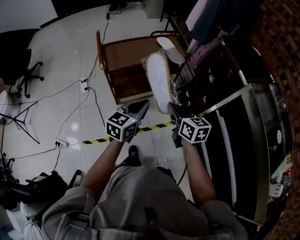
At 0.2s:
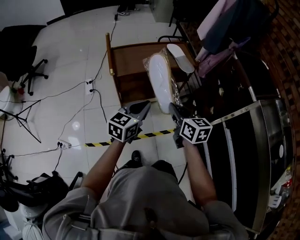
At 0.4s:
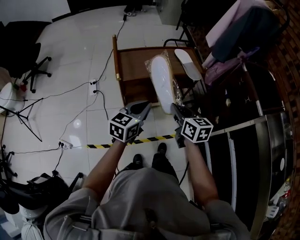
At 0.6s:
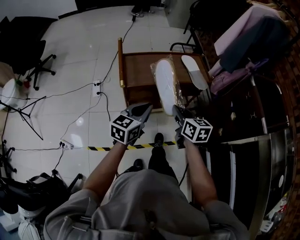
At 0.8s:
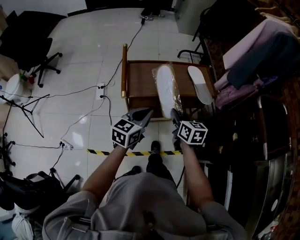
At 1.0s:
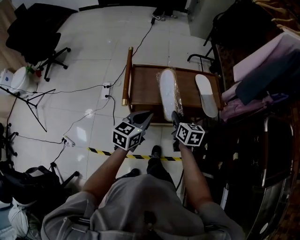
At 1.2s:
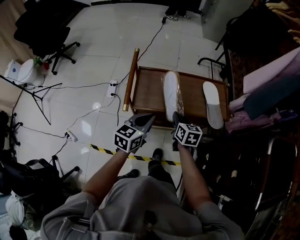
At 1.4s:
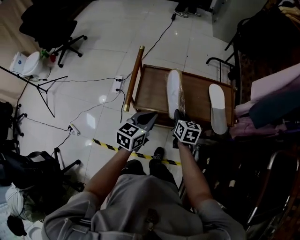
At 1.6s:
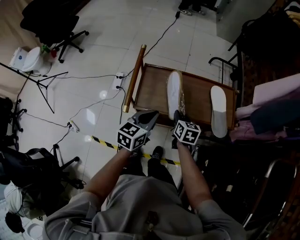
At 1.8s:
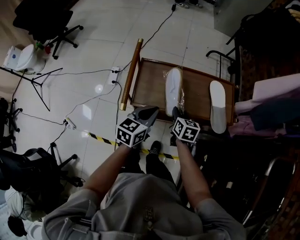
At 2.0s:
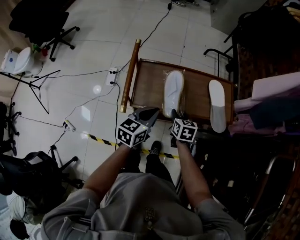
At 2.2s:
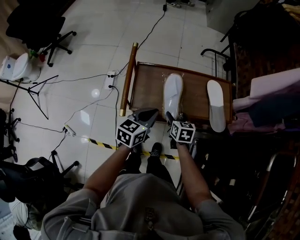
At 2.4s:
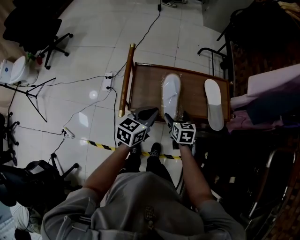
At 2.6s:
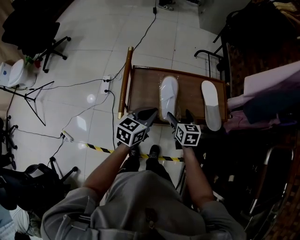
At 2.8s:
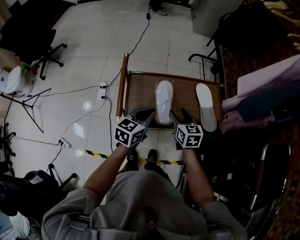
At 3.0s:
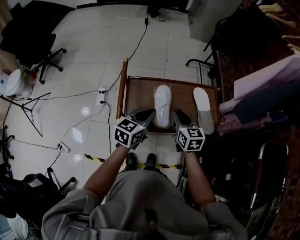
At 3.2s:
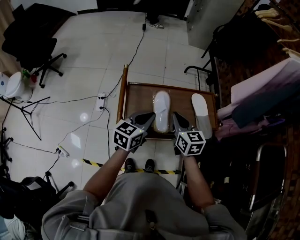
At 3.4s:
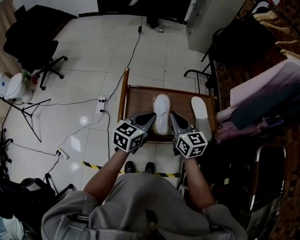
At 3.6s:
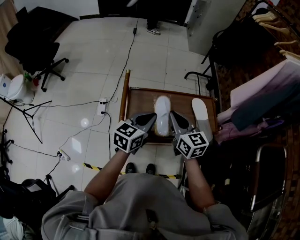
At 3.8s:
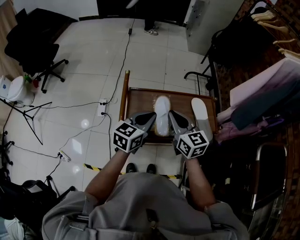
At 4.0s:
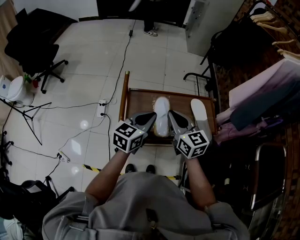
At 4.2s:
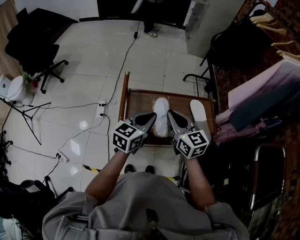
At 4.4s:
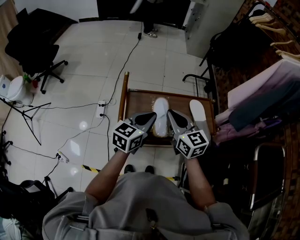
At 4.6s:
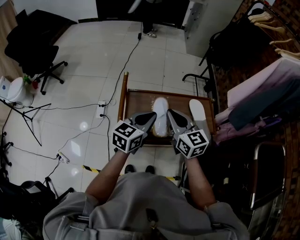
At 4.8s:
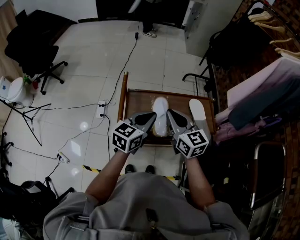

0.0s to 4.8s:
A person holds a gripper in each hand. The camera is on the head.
0.0s to 1.6s: The left gripper is displaced forward by roughly 30 cm, and changes its angle by some 30 degrees. Meanwhile the right gripper is displaced forward and downward by some 40 cm.
1.6s to 3.2s: The left gripper is displaced upward by some 5 cm, while the right gripper heads upward, covering about 15 cm, turns by some 20 degrees, and opens, then closes again.
3.2s to 4.8s: The left gripper is displaced upward by roughly 5 cm. The right gripper moves upward, about 10 cm.

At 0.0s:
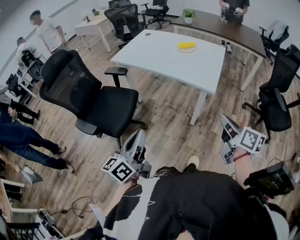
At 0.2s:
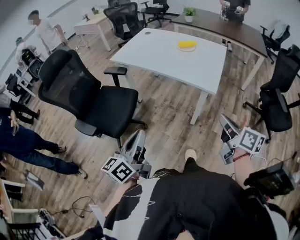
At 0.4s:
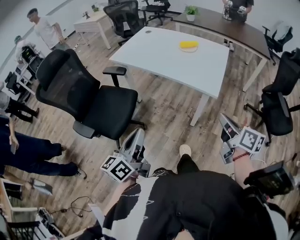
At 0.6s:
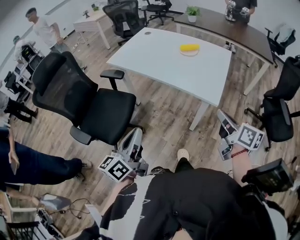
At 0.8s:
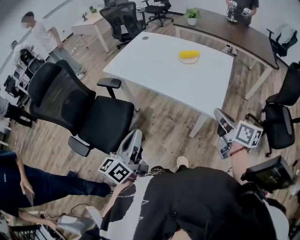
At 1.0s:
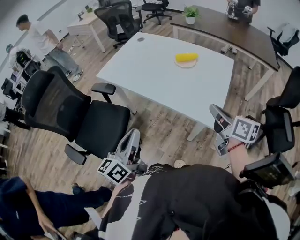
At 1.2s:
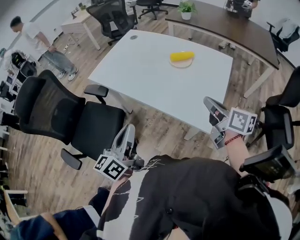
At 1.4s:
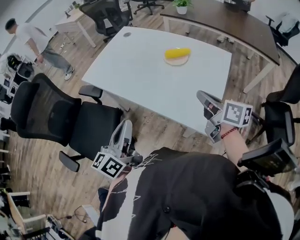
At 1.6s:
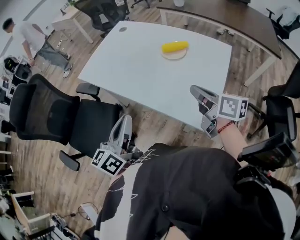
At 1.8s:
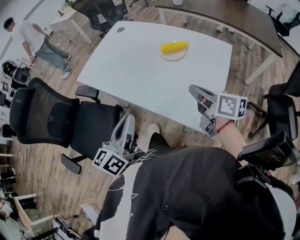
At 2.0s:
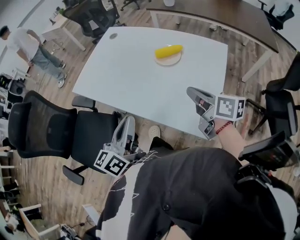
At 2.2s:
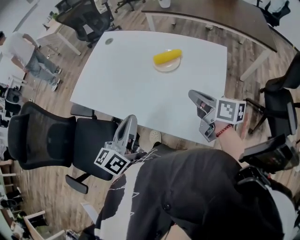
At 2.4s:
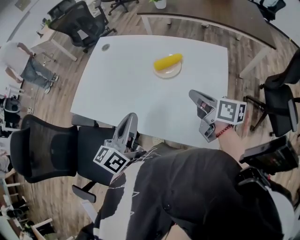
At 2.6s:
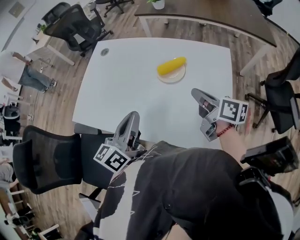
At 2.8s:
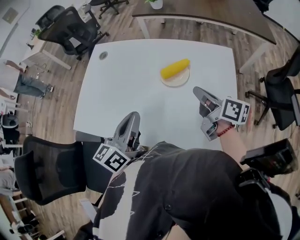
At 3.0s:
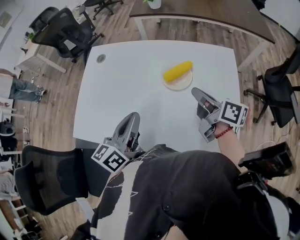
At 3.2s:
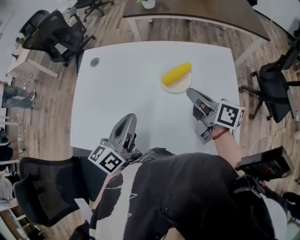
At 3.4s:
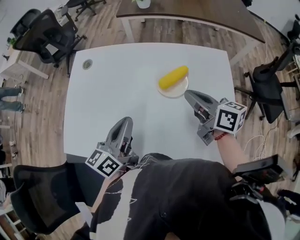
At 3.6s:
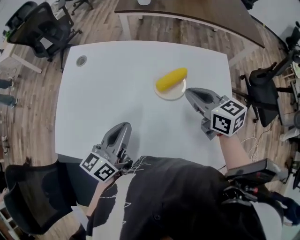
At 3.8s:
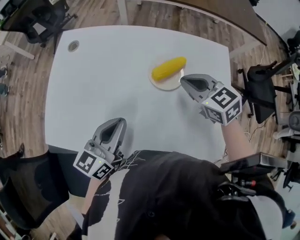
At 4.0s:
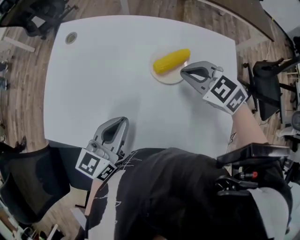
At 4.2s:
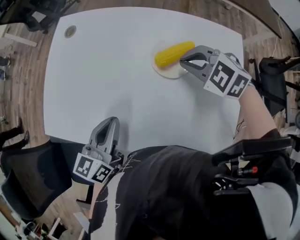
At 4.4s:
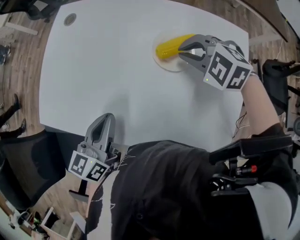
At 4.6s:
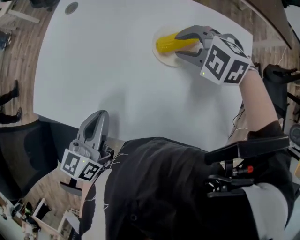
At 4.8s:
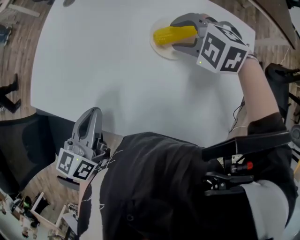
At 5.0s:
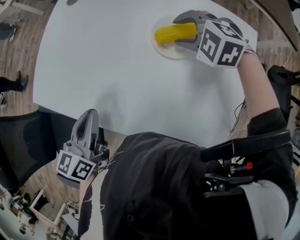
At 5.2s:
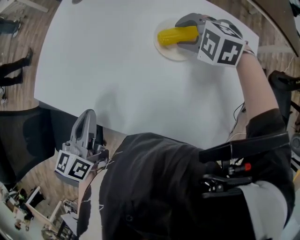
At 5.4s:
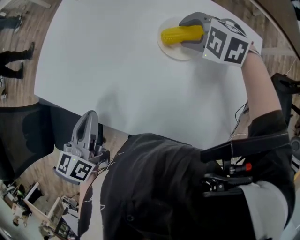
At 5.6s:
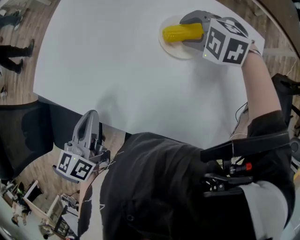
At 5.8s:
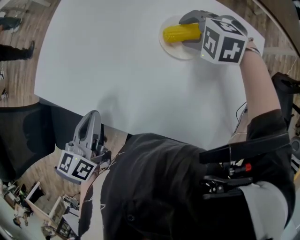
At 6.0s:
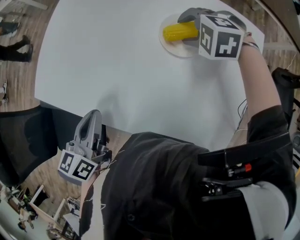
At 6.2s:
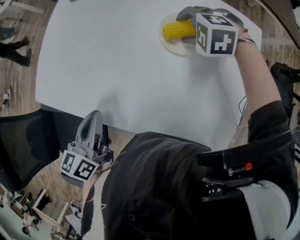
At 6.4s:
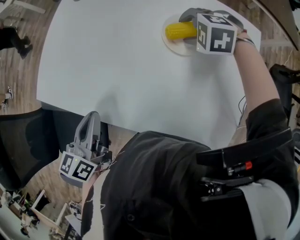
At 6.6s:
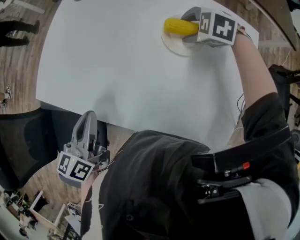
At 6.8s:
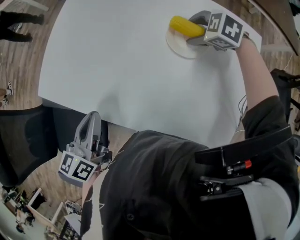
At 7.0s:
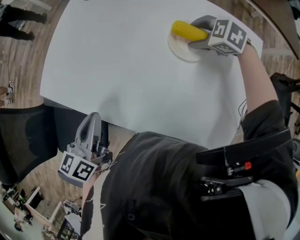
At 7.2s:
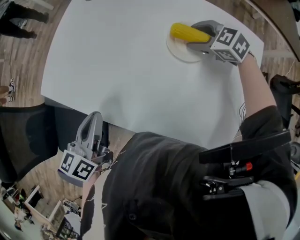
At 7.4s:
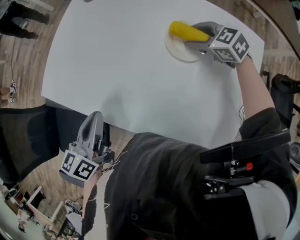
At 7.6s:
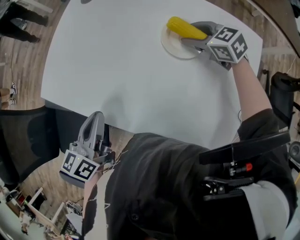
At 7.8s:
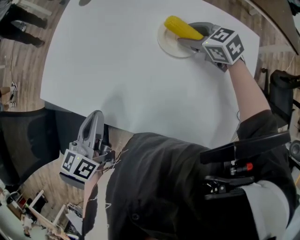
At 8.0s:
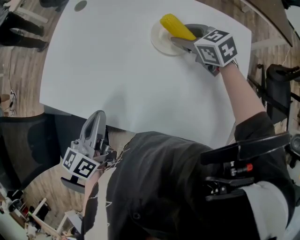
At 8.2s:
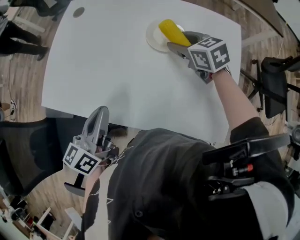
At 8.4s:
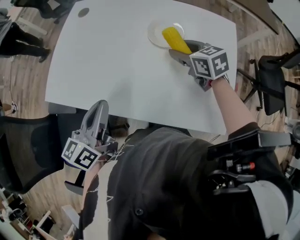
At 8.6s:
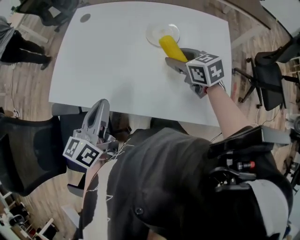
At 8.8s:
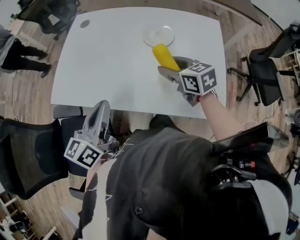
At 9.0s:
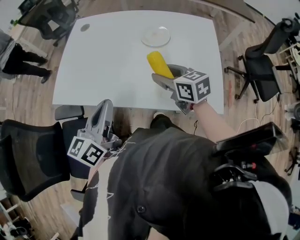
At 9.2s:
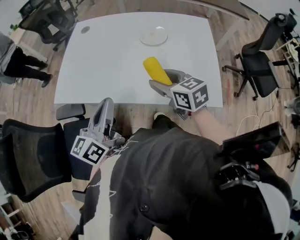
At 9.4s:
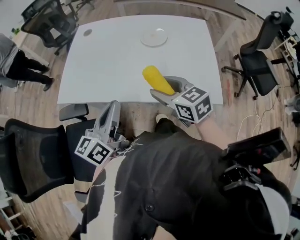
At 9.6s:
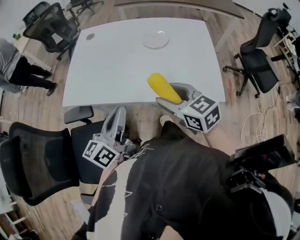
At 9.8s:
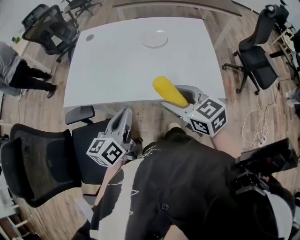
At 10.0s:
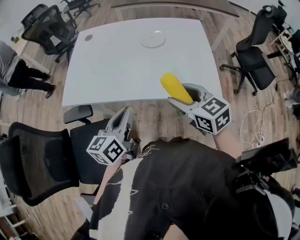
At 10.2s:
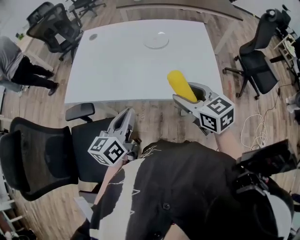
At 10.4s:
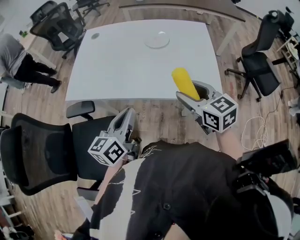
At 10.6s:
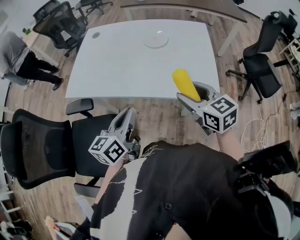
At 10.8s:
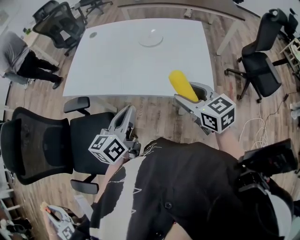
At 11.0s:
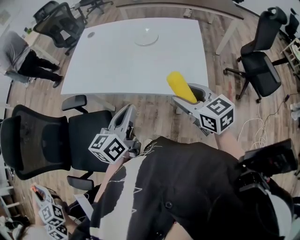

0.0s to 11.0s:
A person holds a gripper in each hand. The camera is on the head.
0.0s to 1.6s: Both grippers move forward, approximately 40 cm.
1.6s to 3.2s: The left gripper changes place by approximately 35 cm, and turns by some 30 degrees, while the right gripper shifts by about 25 cm, and rotates roughly 30 degrees.
3.2s to 4.8s: The left gripper goes roughly 5 cm downward, and turns by about 20 degrees; the right gripper heads downward and forward, covering some 15 cm, twists about 100 degrees counterclockwise, seen from behind, and opens its fingers.
4.8s to 6.2s: The left gripper moves about 5 cm.
6.2s to 7.8s: The right gripper rotates around the line of its fingers by about 50 degrees, clockwise from behind.
7.8s to 9.4s: The left gripper shifts approximately 15 cm backward and upward, and changes its angle by approximately 30 degrees, while the right gripper travels backward by approximately 35 cm, and swivels roughly 30 degrees.
9.4s to 11.0s: The two grippers go about 15 cm to the right and backward.

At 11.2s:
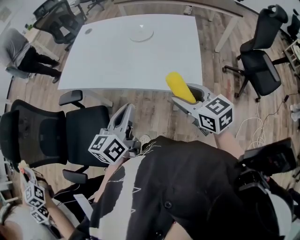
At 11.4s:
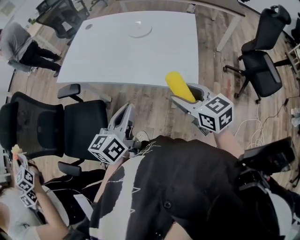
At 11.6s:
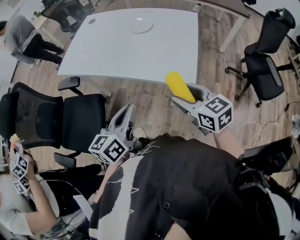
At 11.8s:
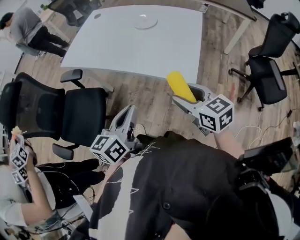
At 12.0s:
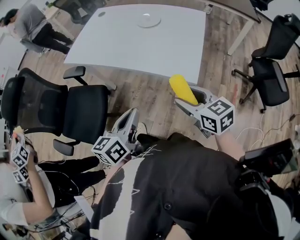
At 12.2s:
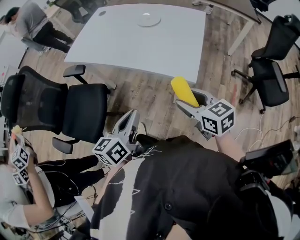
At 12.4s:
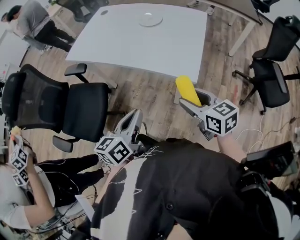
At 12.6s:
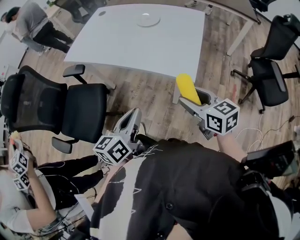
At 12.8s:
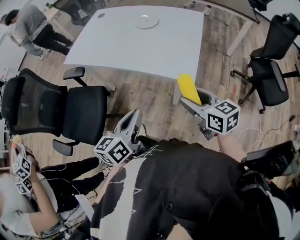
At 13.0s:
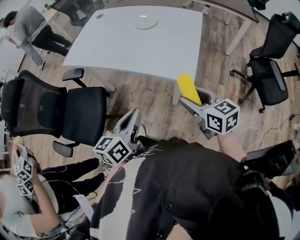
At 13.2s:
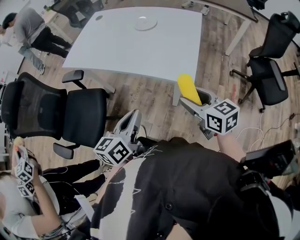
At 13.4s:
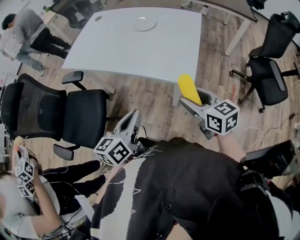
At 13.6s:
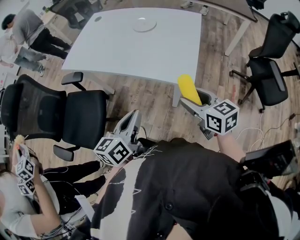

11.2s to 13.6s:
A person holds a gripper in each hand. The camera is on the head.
11.2s to 12.4s: Both grippers travel together backward and to the right, about 15 cm.
12.4s to 13.6s: The grippers make only small movements.

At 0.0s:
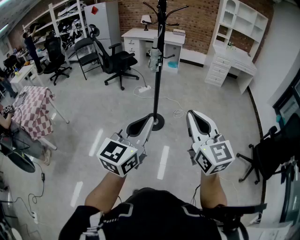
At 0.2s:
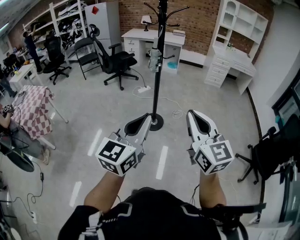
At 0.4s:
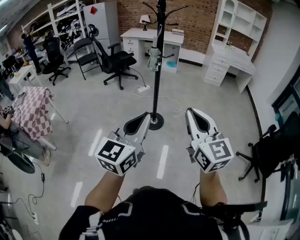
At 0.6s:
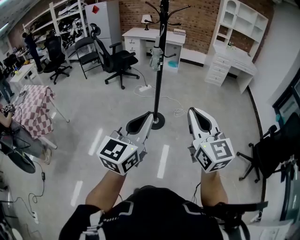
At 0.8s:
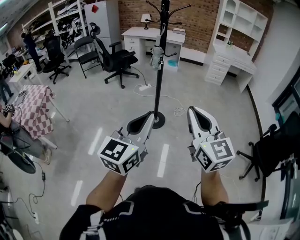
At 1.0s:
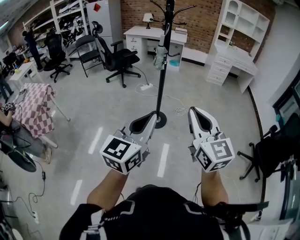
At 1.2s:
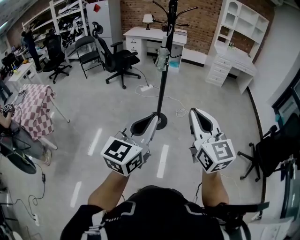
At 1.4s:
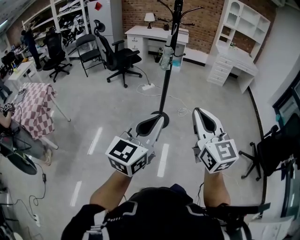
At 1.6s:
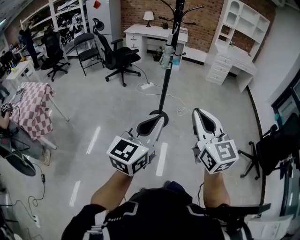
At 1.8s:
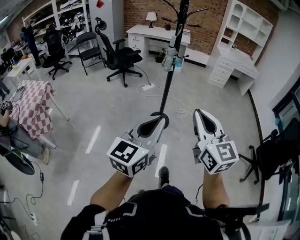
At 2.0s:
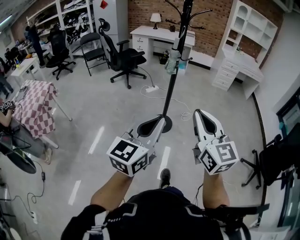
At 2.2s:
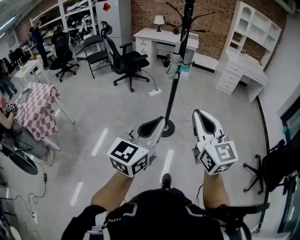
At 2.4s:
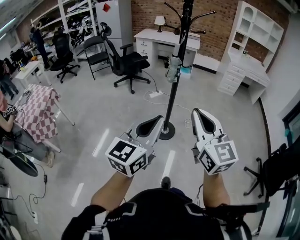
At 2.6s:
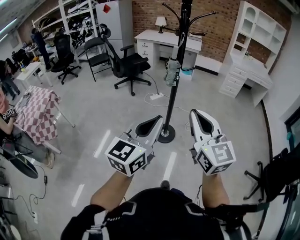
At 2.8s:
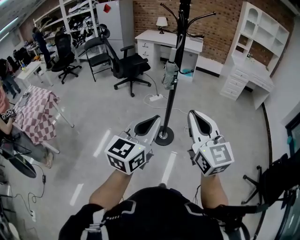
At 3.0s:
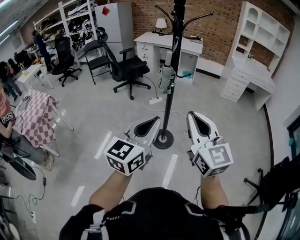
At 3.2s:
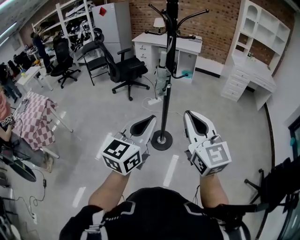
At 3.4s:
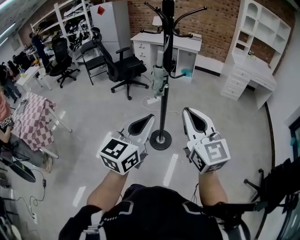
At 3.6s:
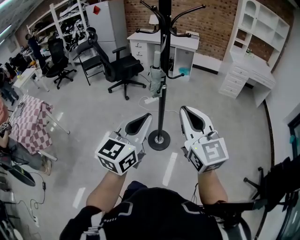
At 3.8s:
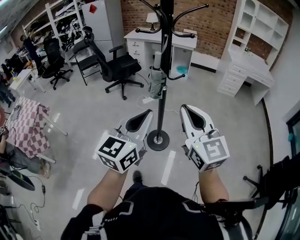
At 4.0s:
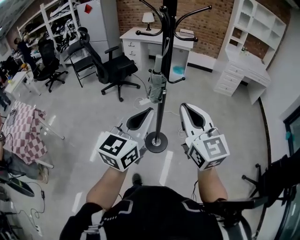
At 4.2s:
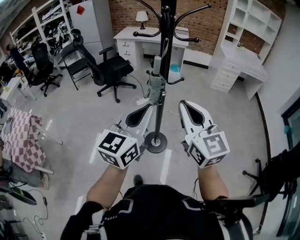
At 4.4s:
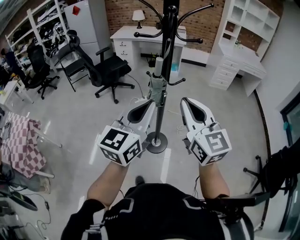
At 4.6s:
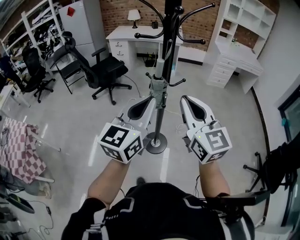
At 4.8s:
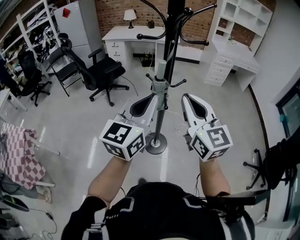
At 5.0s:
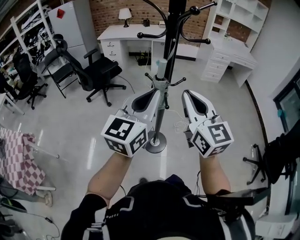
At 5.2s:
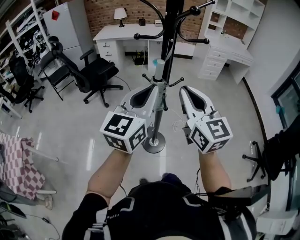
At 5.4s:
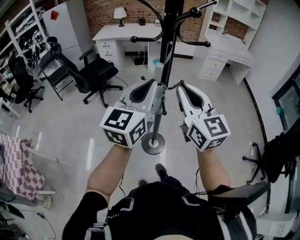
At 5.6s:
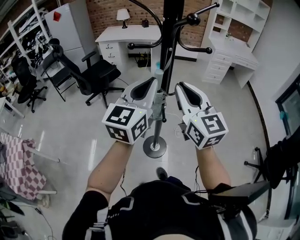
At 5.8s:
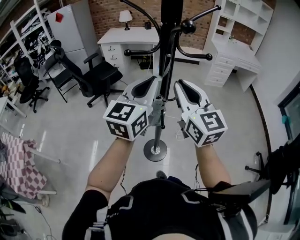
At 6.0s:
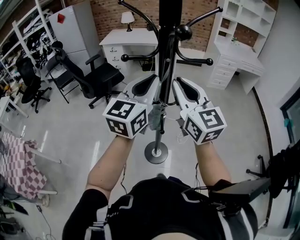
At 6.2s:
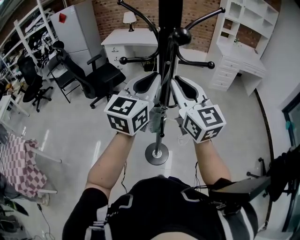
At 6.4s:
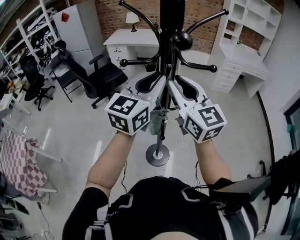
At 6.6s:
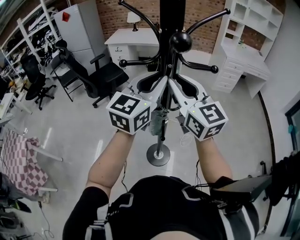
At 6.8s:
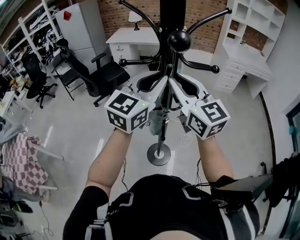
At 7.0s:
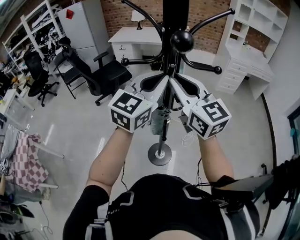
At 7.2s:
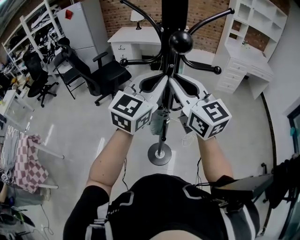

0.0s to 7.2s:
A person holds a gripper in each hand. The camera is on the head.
0.0s to 1.4s: The grippers both shift to the left by about 10 cm.
1.4s to 2.8s: The two grippers go roughly 20 cm forward.
2.8s to 4.4s: Both grippers travel together forward, about 25 cm.
4.4s to 5.8s: Both grippers travel together forward, some 20 cm.
5.8s to 7.2s: The two grippers go some 5 cm forward.
